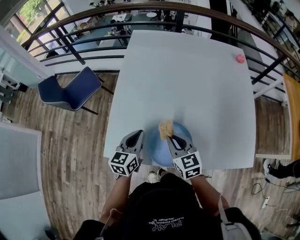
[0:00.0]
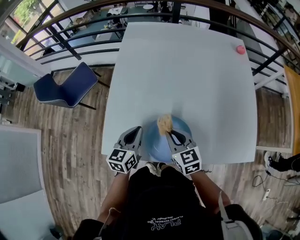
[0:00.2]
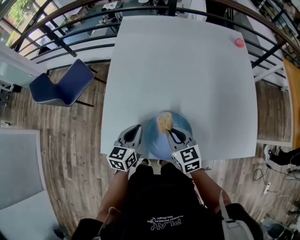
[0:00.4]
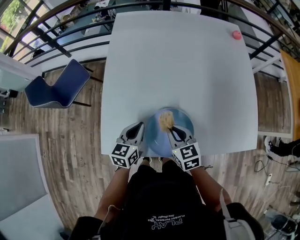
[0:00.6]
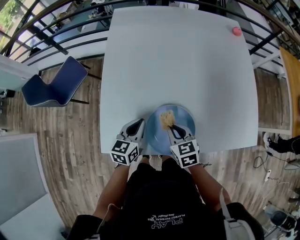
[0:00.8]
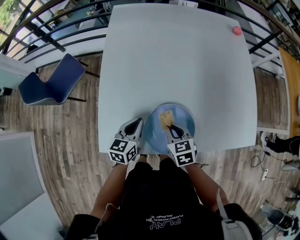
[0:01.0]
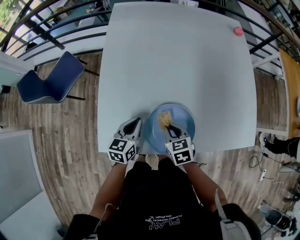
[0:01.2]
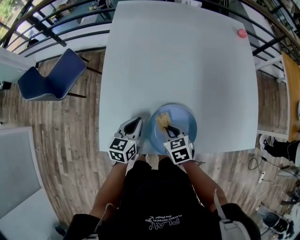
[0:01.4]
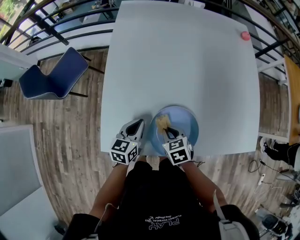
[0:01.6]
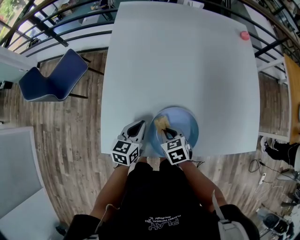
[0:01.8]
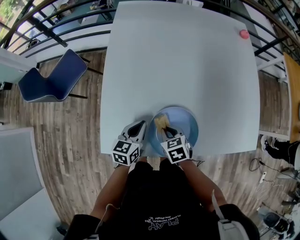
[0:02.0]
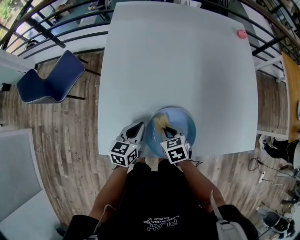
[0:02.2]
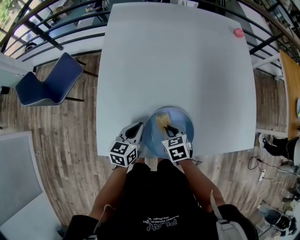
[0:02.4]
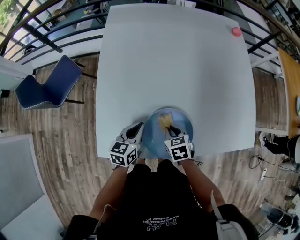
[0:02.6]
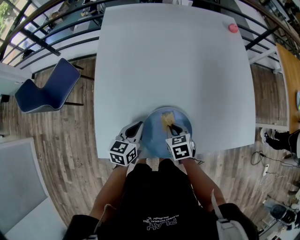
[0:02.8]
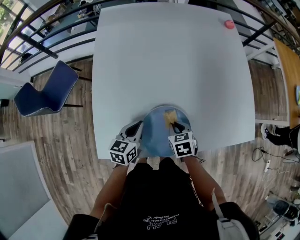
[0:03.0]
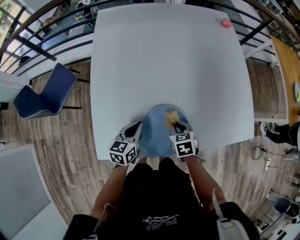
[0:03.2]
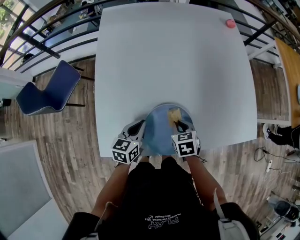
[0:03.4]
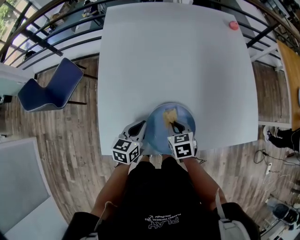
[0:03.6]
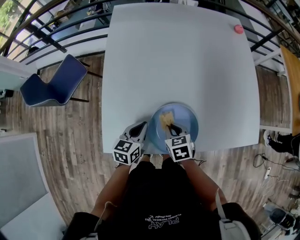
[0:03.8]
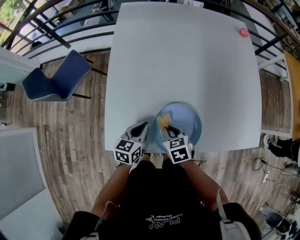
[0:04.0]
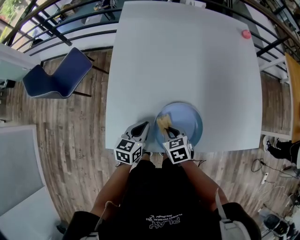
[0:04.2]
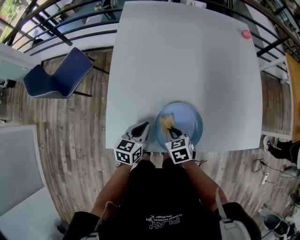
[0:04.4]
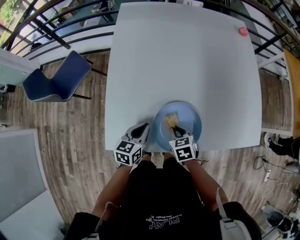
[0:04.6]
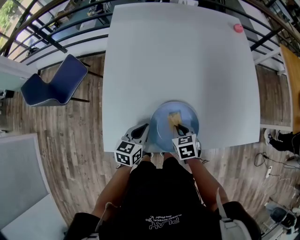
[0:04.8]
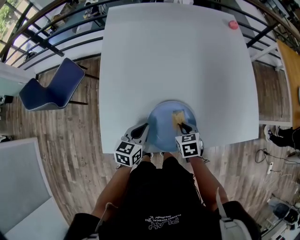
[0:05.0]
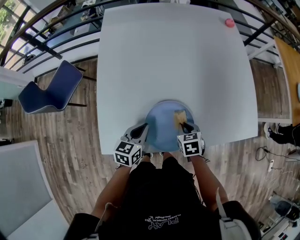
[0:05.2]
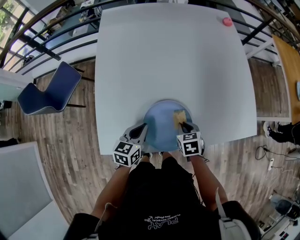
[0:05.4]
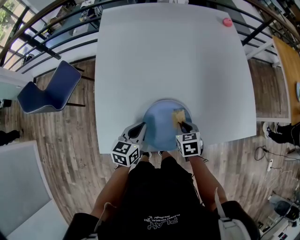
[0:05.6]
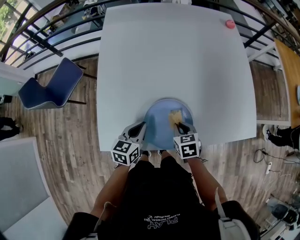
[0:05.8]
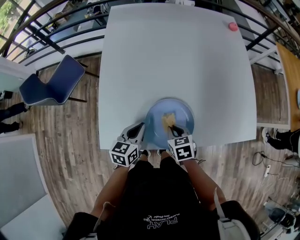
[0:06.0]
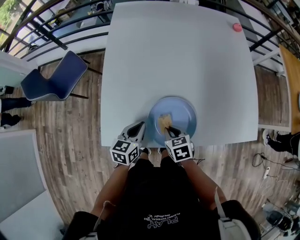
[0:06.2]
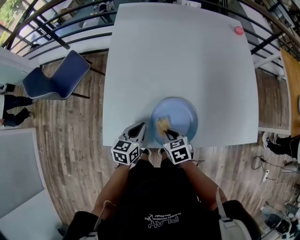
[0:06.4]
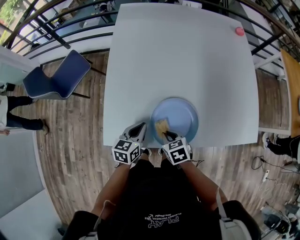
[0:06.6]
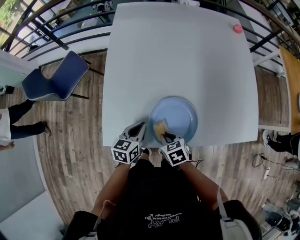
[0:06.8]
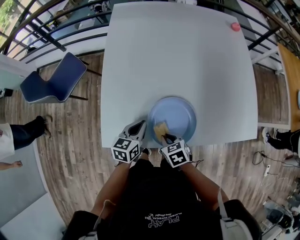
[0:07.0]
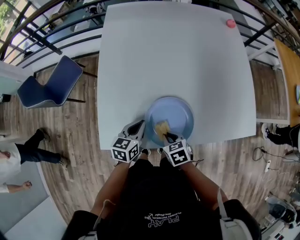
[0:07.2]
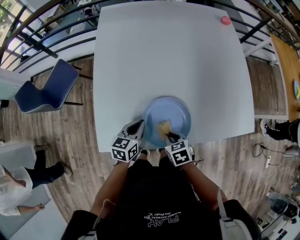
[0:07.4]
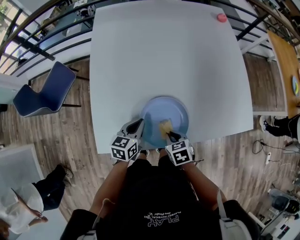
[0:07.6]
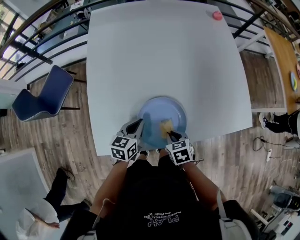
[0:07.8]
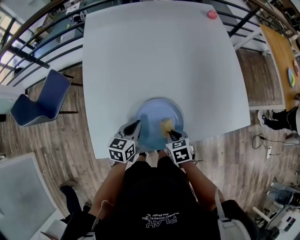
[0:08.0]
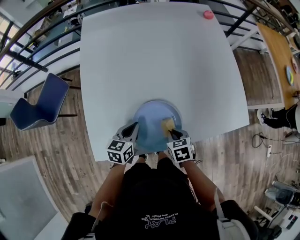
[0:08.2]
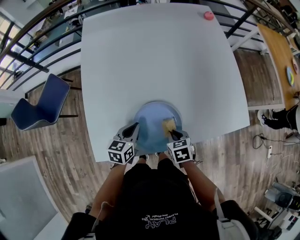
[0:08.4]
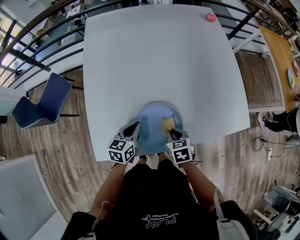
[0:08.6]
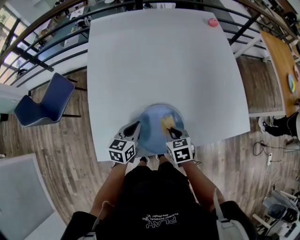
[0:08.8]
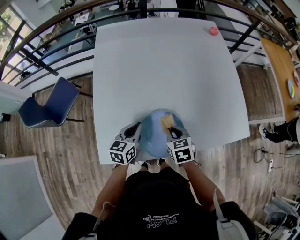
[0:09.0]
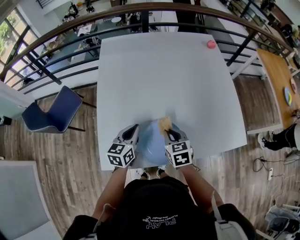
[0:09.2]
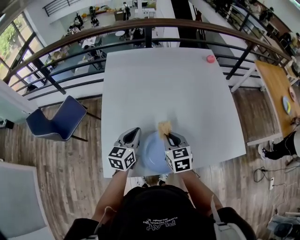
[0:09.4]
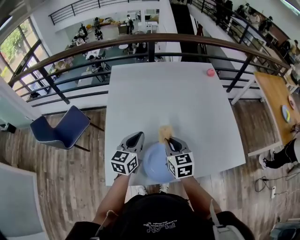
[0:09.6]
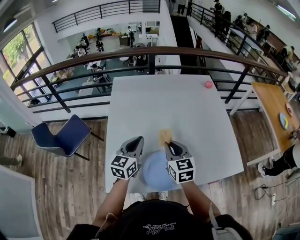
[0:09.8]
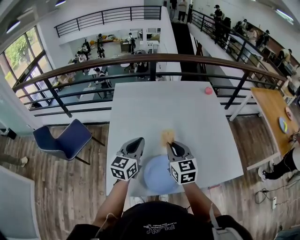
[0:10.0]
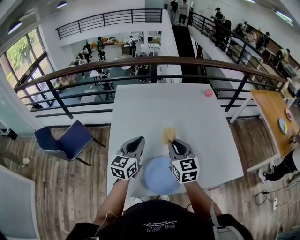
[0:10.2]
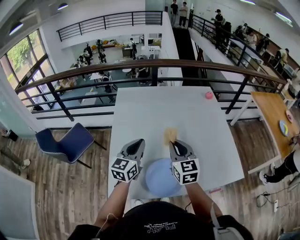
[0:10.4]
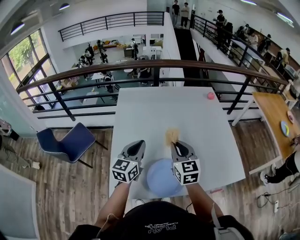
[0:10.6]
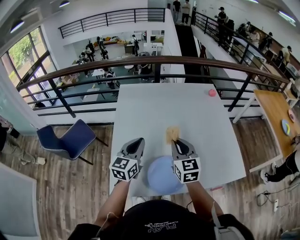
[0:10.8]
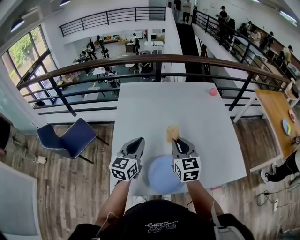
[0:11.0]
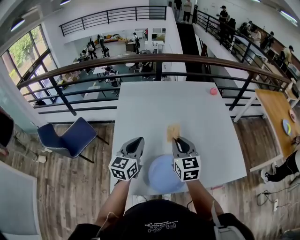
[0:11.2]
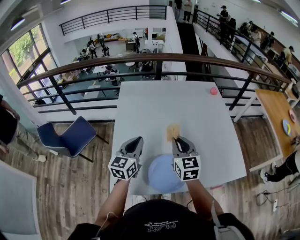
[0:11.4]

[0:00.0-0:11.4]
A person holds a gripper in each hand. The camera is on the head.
0.0 to 1.4 s: Both grippers move downward, approximately 10 cm. The right gripper swivels about 30 degrees.
1.4 to 2.8 s: The right gripper moves approximately 5 cm.
2.8 to 4.2 s: The right gripper is displaced to the left by about 5 cm.
4.2 to 5.6 s: The left gripper ends up roughly 5 cm from where it was, while the right gripper travels to the right by approximately 15 cm.
5.6 to 7.2 s: The right gripper goes about 10 cm to the left and backward.
7.2 to 8.6 s: The right gripper heads to the right, covering about 10 cm.
8.6 to 10.0 s: The two grippers go about 30 cm upward. The left gripper rotates roughly 30 degrees. The right gripper angles its fingers upward, by some 40 degrees.
10.0 to 11.4 s: The grippers move only a little.

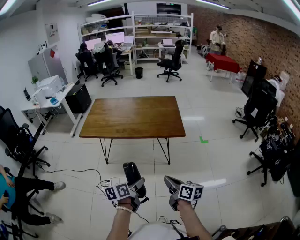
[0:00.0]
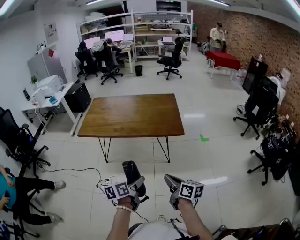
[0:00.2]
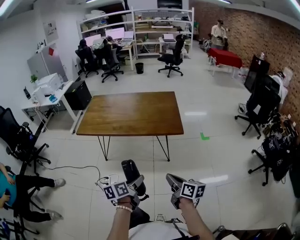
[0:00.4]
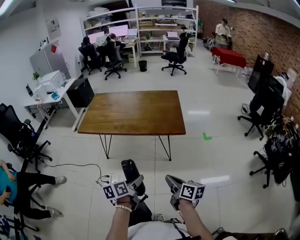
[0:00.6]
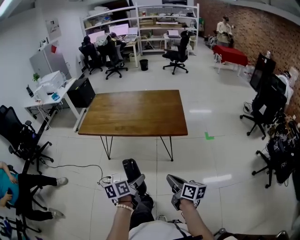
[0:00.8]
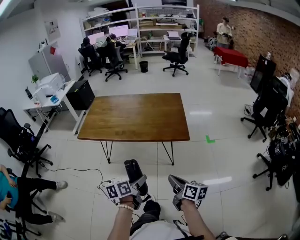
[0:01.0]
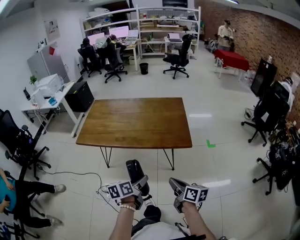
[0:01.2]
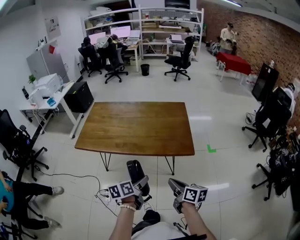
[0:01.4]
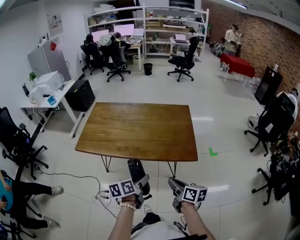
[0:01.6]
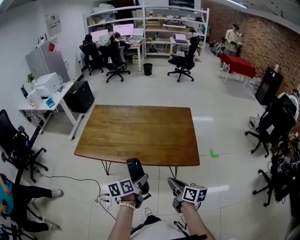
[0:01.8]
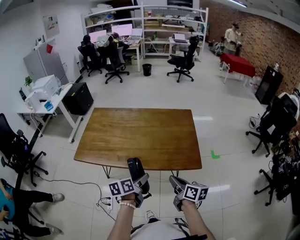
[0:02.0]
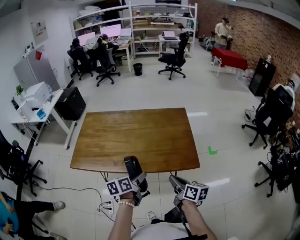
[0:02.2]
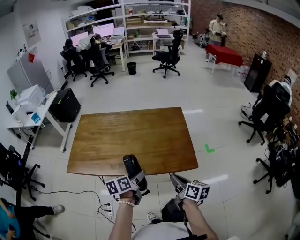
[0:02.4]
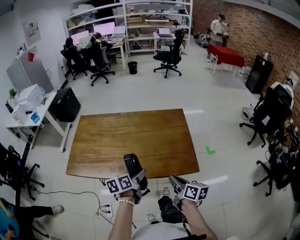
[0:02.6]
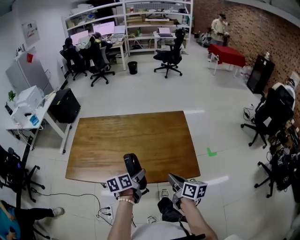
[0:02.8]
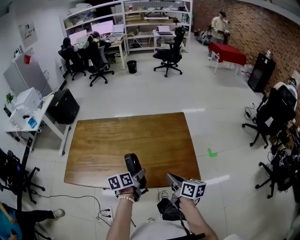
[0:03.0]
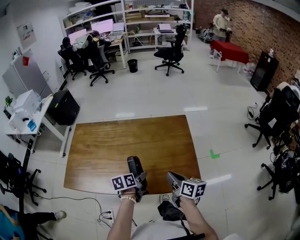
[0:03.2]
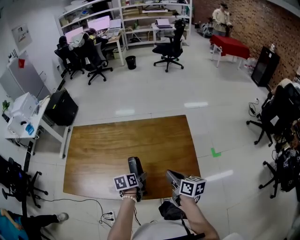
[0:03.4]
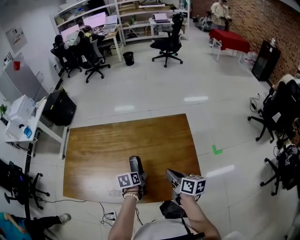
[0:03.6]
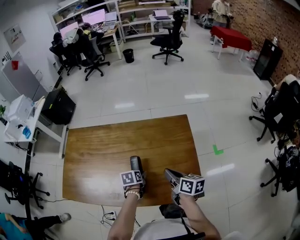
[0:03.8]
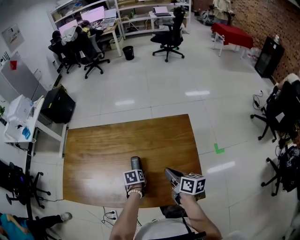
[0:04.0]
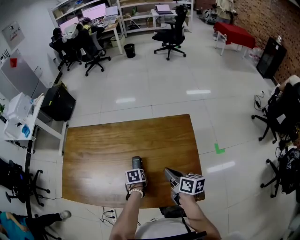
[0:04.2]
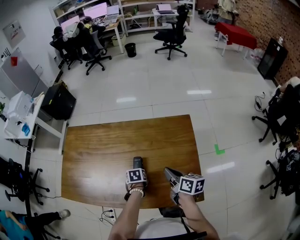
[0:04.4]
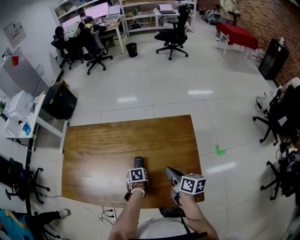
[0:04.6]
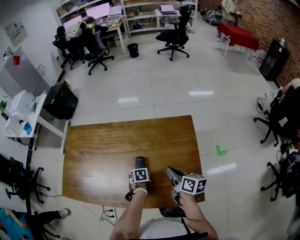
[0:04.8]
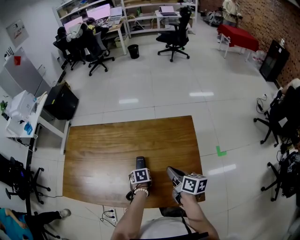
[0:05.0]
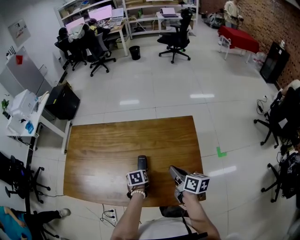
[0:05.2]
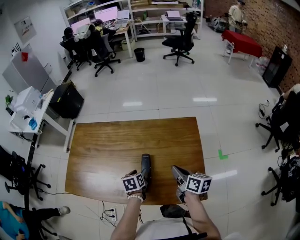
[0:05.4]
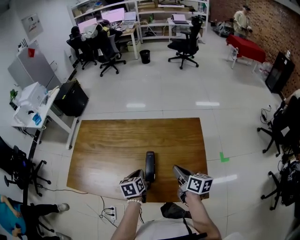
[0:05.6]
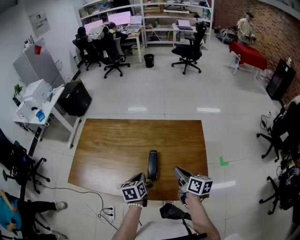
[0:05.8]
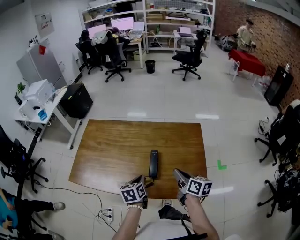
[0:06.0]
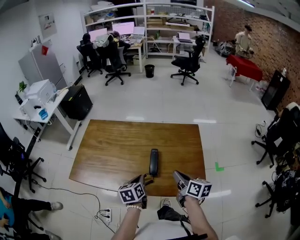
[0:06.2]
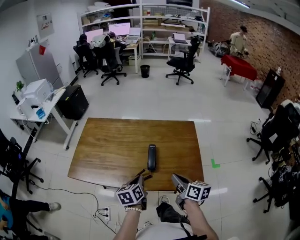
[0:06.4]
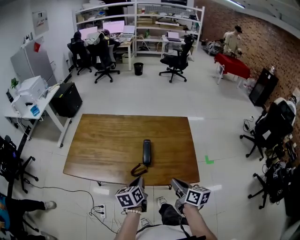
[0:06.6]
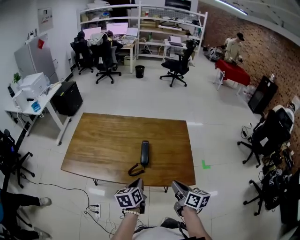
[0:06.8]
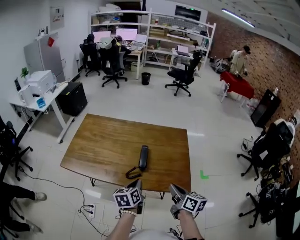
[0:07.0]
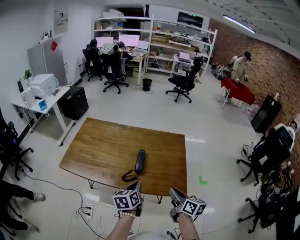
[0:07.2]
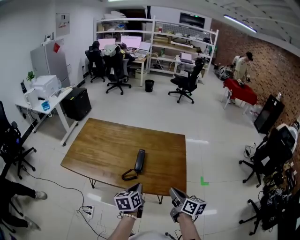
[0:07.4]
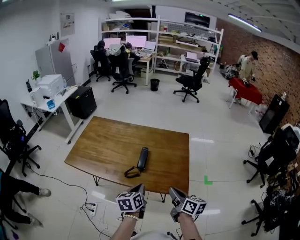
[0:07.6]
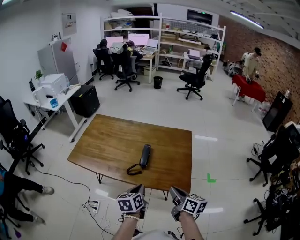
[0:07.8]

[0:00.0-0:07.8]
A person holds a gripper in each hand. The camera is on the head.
0.0 to 1.6 s: Both grippers travel together forward, about 20 cm.
1.6 to 3.2 s: The grippers both shift forward by roughly 25 cm.
3.2 to 4.6 s: The right gripper ends up approximately 10 cm from where it was, while the left gripper goes approximately 15 cm downward, and tilts its fingers approximately 40 degrees downward.
4.6 to 6.2 s: The left gripper is displaced upward by approximately 20 cm, angles its fingers upward, by approximately 40 degrees, and closes its fingers; the right gripper ends up some 10 cm from where it was.
6.2 to 7.8 s: The left gripper is displaced backward and to the right by roughly 15 cm, while the right gripper heads backward, covering some 15 cm.

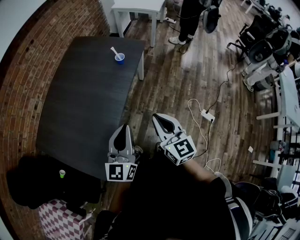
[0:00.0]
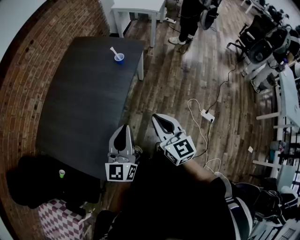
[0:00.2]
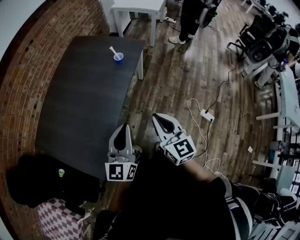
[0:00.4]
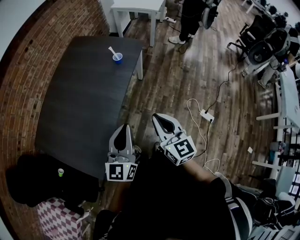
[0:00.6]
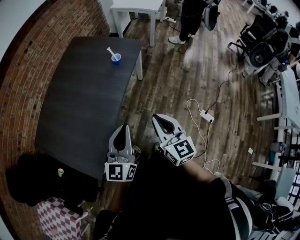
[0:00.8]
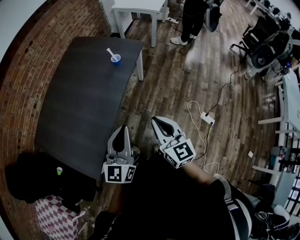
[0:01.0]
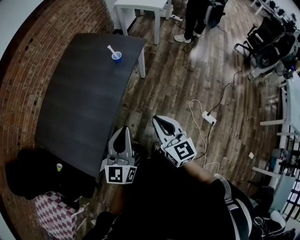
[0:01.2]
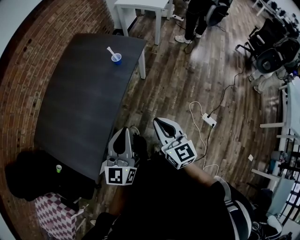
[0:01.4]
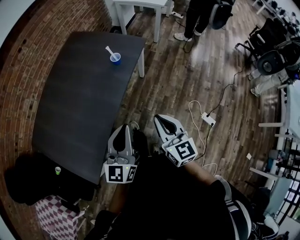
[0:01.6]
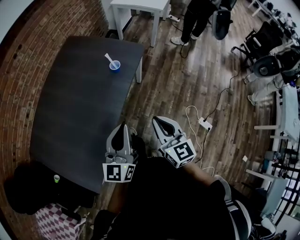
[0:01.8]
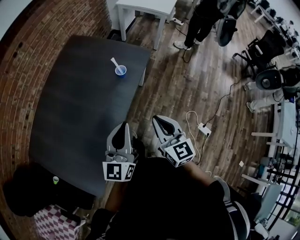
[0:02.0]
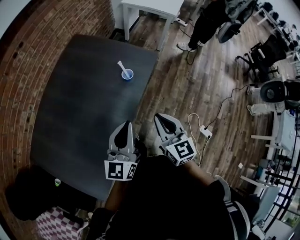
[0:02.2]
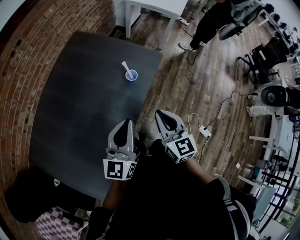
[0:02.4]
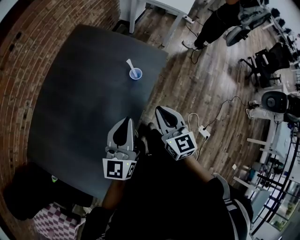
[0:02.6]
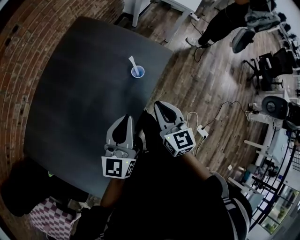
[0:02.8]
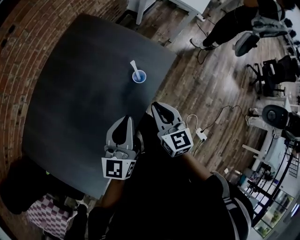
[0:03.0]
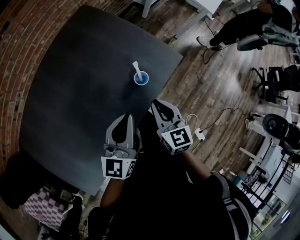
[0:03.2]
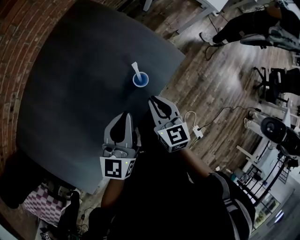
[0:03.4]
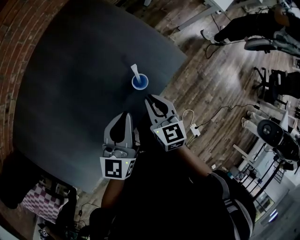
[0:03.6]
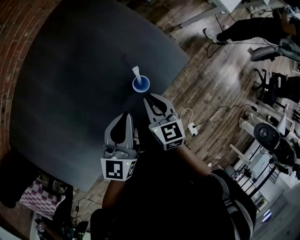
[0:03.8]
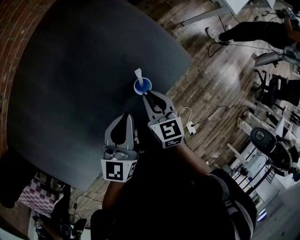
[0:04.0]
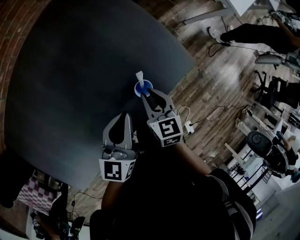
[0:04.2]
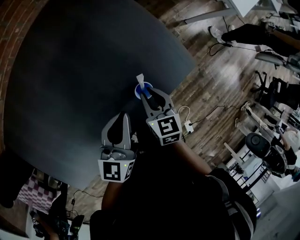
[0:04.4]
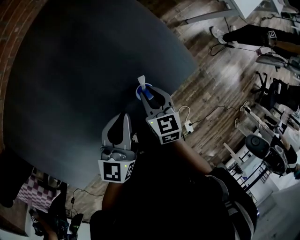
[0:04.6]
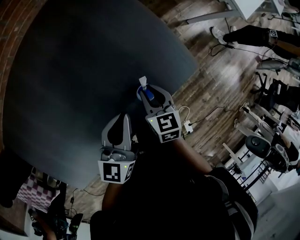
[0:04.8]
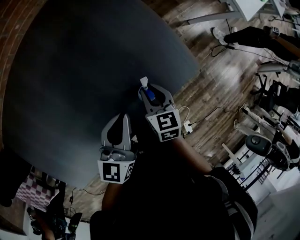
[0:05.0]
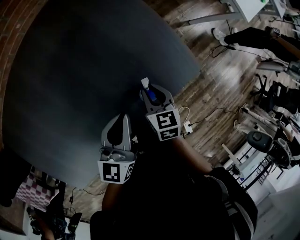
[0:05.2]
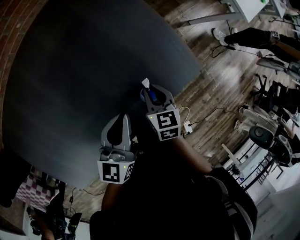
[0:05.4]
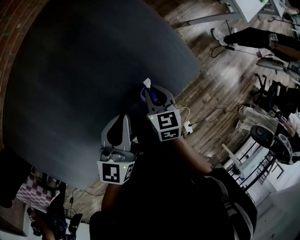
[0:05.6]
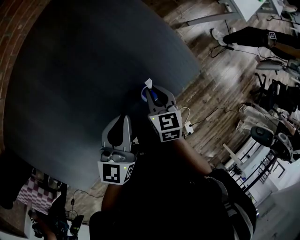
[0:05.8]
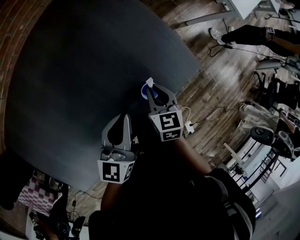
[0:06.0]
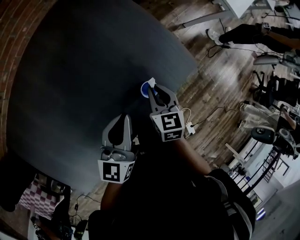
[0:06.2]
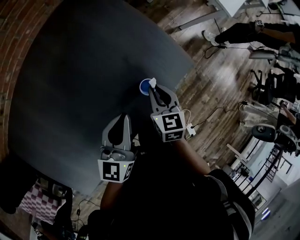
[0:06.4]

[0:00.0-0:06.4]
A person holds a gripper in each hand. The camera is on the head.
0.0 to 1.6 s: The left gripper heads forward and to the right, covering roughly 10 cm, while the right gripper moves to the right and forward, roughly 10 cm.
1.6 to 3.2 s: Both grippers move forward, some 35 cm.
3.2 to 4.8 s: The right gripper is displaced downward and forward by about 20 cm, and swivels approximately 20 degrees. The left gripper heads forward and downward, covering roughly 15 cm.
4.8 to 6.4 s: The left gripper shifts by roughly 5 cm, while the right gripper heads upward, covering about 5 cm.
